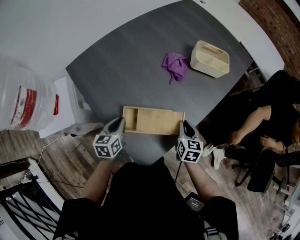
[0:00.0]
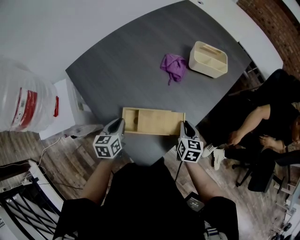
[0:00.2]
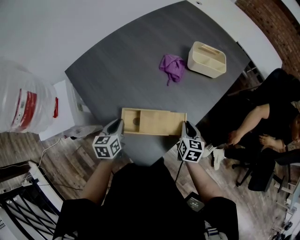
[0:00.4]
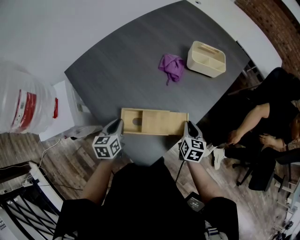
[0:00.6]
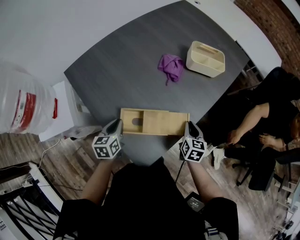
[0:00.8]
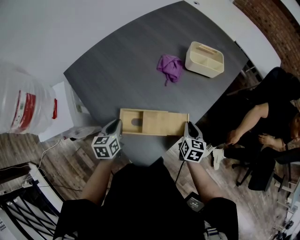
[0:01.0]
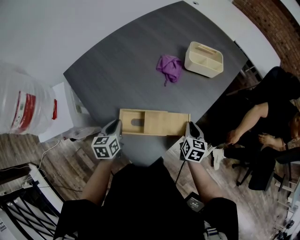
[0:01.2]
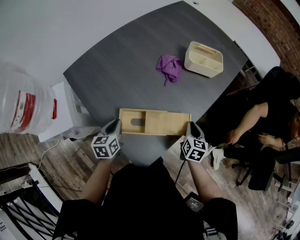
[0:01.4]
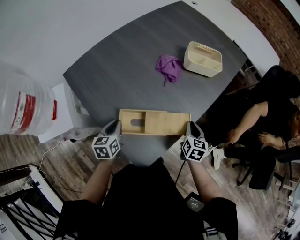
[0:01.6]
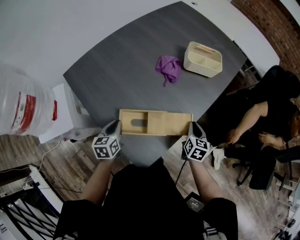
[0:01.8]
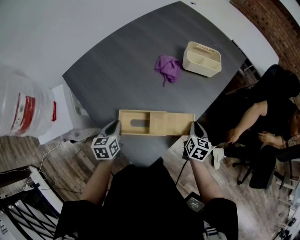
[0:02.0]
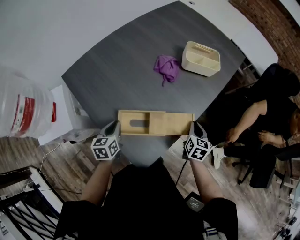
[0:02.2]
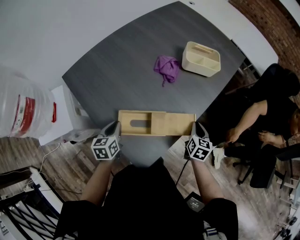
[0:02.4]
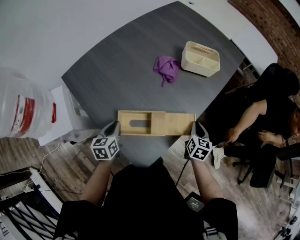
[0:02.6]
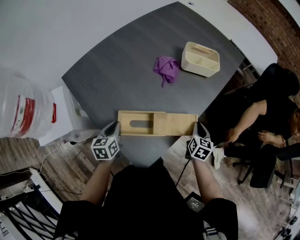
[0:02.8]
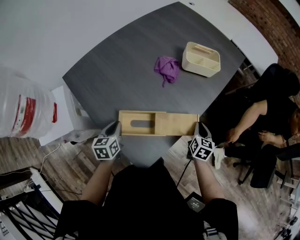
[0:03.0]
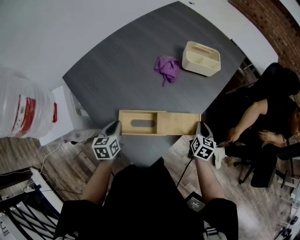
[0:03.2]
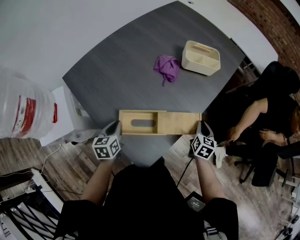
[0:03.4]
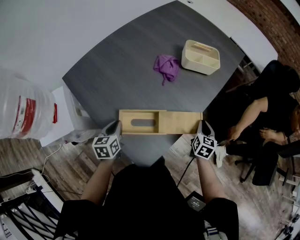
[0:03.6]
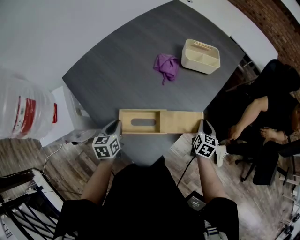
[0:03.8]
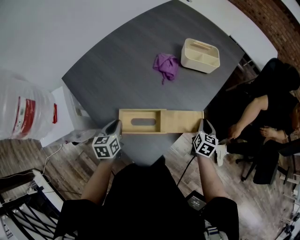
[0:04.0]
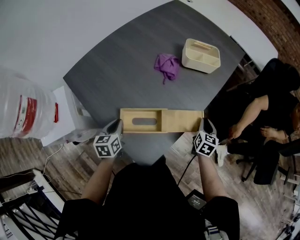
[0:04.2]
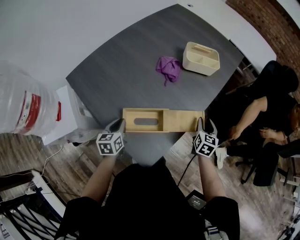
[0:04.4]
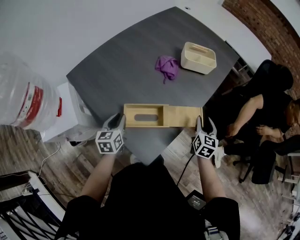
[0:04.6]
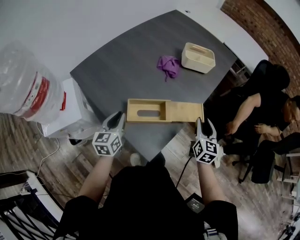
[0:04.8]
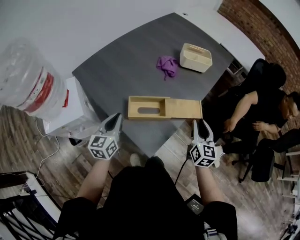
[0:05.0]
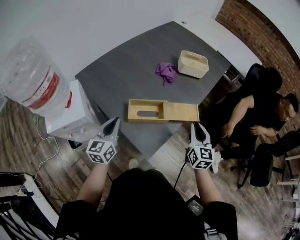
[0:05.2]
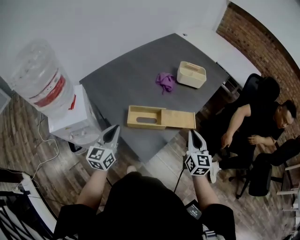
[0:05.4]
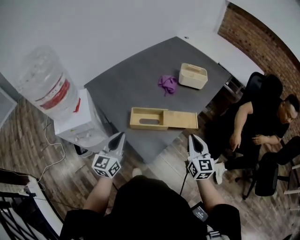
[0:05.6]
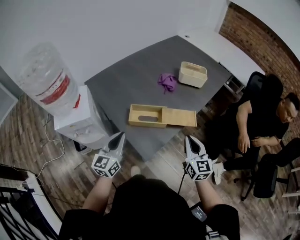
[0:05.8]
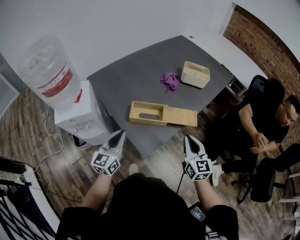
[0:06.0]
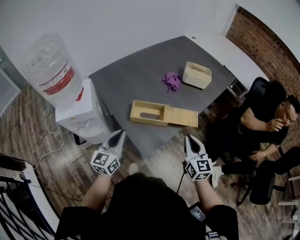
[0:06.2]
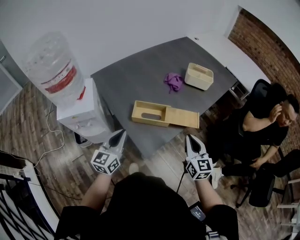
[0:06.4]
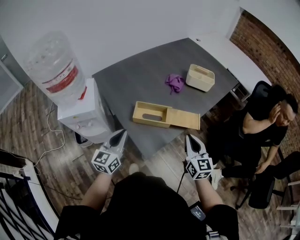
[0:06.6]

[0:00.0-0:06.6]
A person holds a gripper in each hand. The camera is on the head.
0:00.0 to 0:01.6: The right gripper heads to the right, covering about 5 cm.
0:01.6 to 0:03.2: The right gripper heads to the right, covering about 5 cm.
0:03.2 to 0:05.0: The left gripper heads upward and backward, covering some 10 cm, and swivels approximately 30 degrees. The right gripper is displaced upward, backward and to the left by roughly 20 cm, and turns by about 20 degrees.
0:05.0 to 0:06.6: The right gripper travels backward by about 5 cm, turns by about 20 degrees, and closes up; the left gripper moves backward, approximately 10 cm.

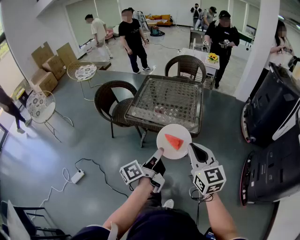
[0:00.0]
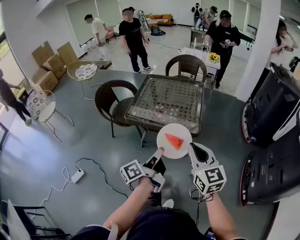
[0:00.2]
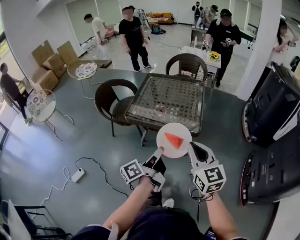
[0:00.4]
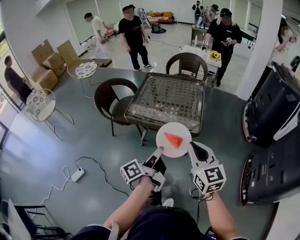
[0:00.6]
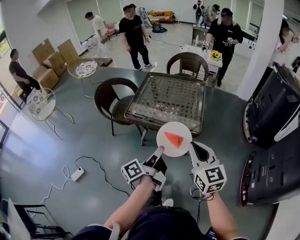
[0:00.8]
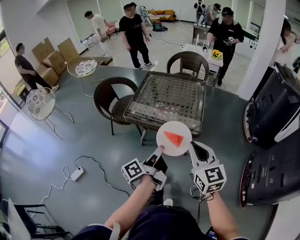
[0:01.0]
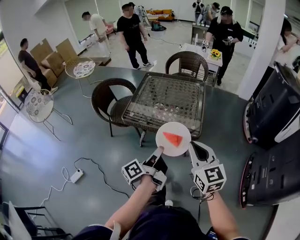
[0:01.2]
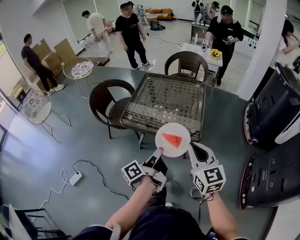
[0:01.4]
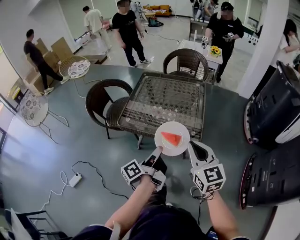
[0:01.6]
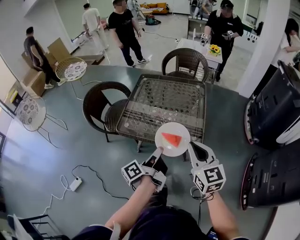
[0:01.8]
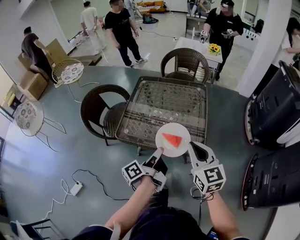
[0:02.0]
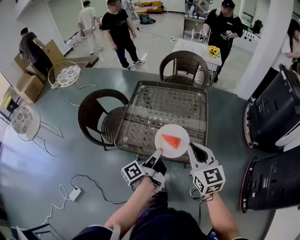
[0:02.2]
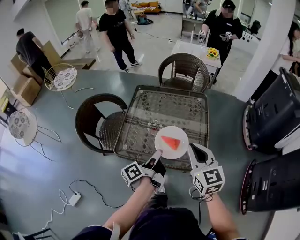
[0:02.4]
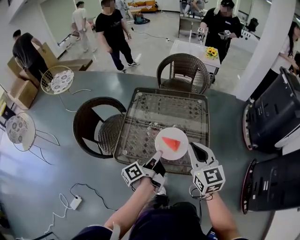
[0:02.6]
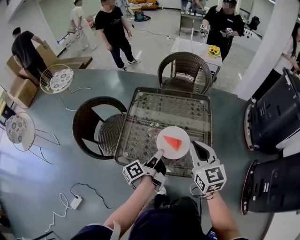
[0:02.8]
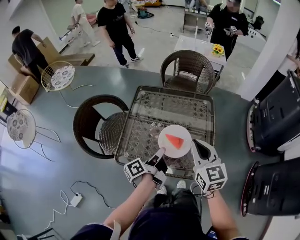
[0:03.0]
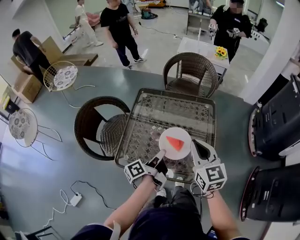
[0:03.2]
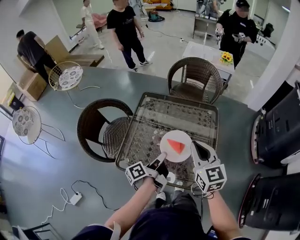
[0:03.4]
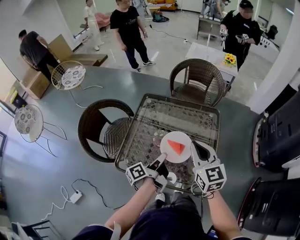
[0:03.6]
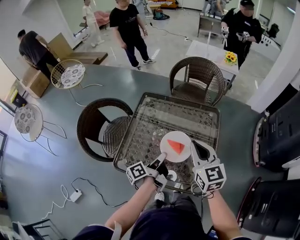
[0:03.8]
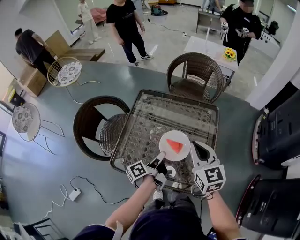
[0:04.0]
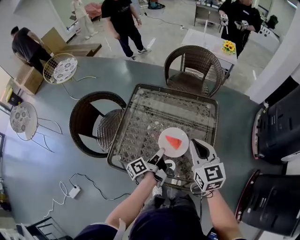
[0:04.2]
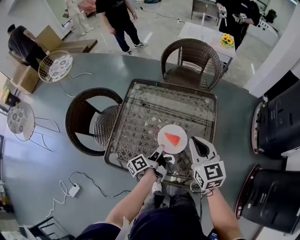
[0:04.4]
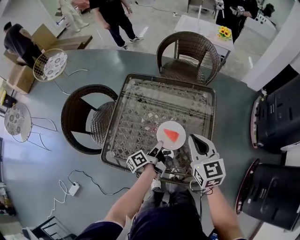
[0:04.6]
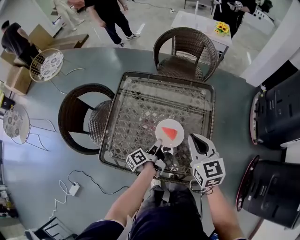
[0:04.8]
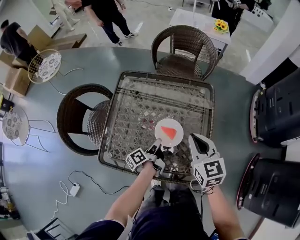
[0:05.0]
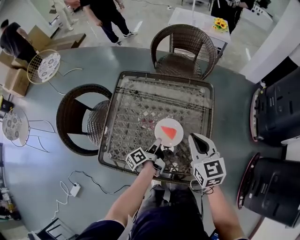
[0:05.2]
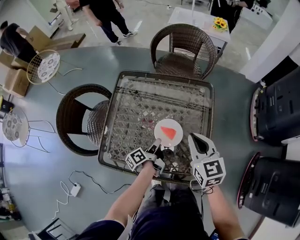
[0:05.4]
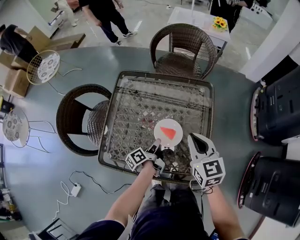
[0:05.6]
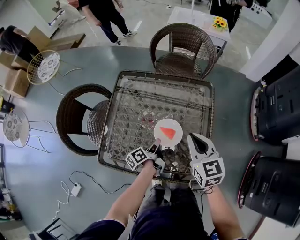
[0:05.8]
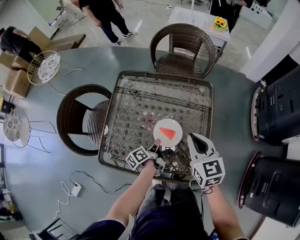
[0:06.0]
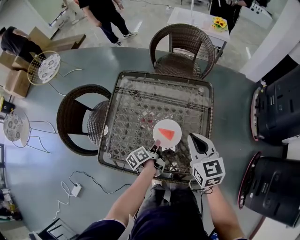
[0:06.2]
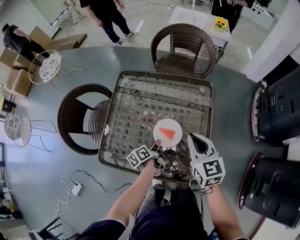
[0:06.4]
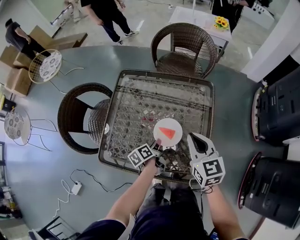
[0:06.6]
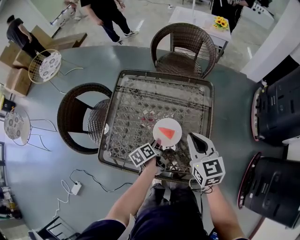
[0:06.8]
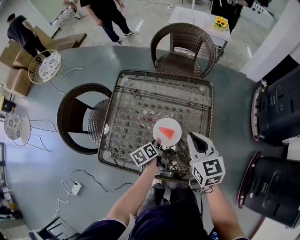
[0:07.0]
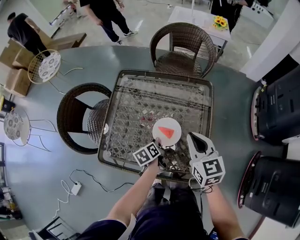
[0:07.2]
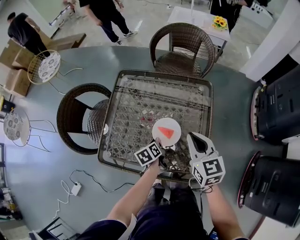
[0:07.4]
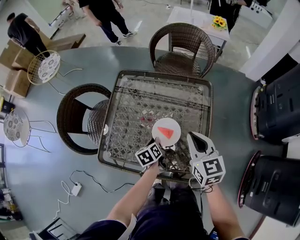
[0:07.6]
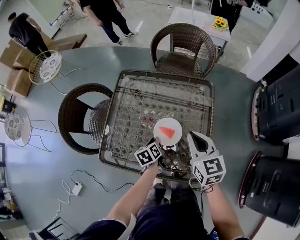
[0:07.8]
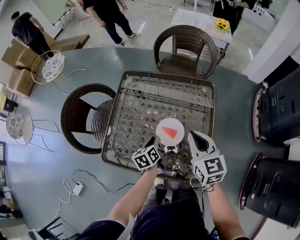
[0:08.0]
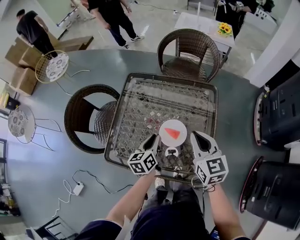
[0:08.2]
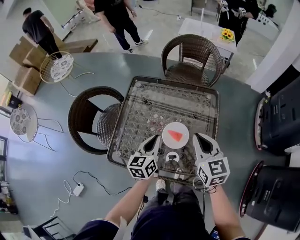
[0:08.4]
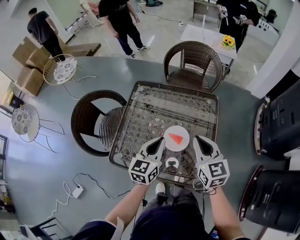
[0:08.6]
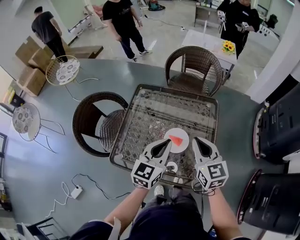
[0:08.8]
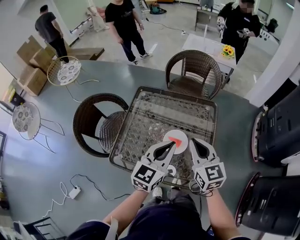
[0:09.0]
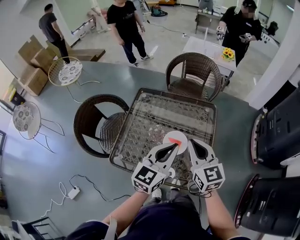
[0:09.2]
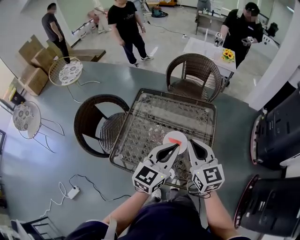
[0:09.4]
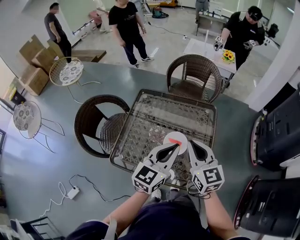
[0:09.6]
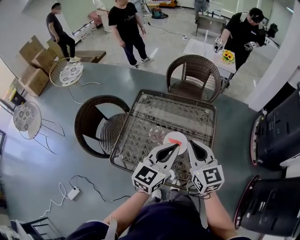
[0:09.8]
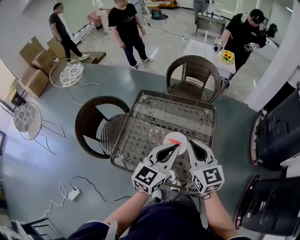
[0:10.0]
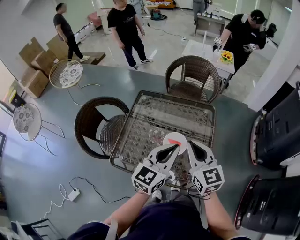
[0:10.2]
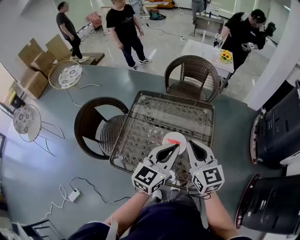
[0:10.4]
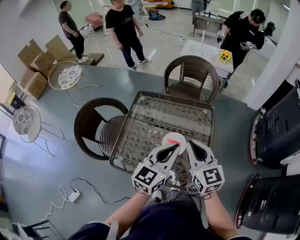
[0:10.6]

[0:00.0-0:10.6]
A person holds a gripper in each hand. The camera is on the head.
0:00.0 to 0:01.6: The left gripper heads forward and downward, covering roughly 15 cm. Meanwhile the right gripper goes roughly 15 cm forward.
0:01.6 to 0:03.0: The two grippers go about 25 cm forward.
0:03.0 to 0:04.6: The right gripper heads forward and downward, covering approximately 10 cm. The left gripper goes approximately 15 cm downward and forward.
0:04.6 to 0:06.0: There are only small adjustments of the grippers.
0:06.0 to 0:07.6: The left gripper swivels some 40 degrees.
0:07.6 to 0:09.0: The right gripper travels upward by some 10 cm, while the left gripper heads upward, covering some 30 cm, and tilts its fingers approximately 40 degrees upward.
0:09.0 to 0:10.6: The grippers stay close to where they were, moving slightly.

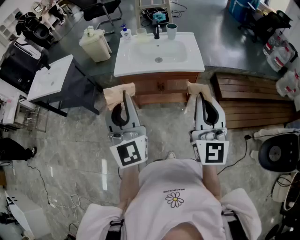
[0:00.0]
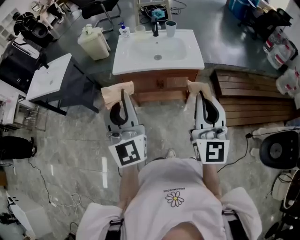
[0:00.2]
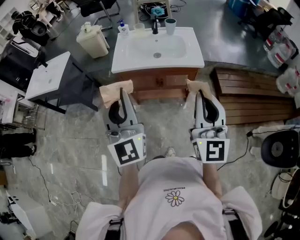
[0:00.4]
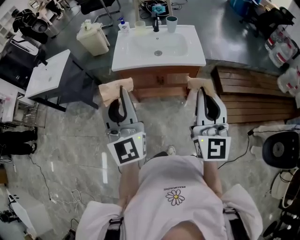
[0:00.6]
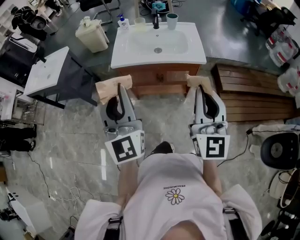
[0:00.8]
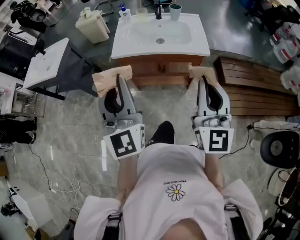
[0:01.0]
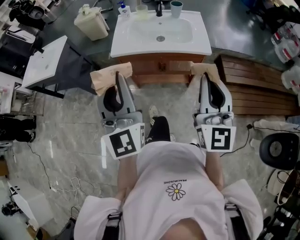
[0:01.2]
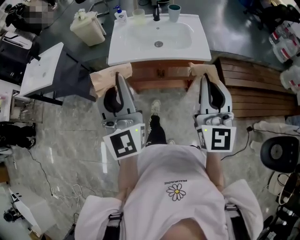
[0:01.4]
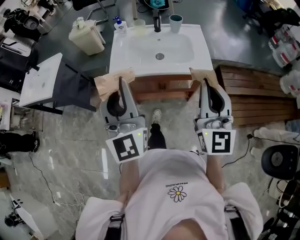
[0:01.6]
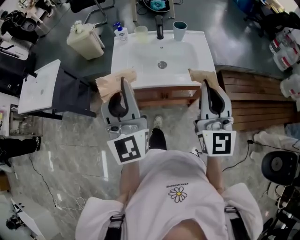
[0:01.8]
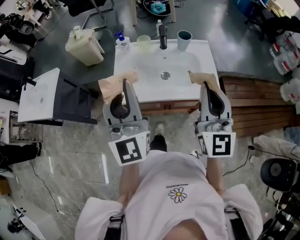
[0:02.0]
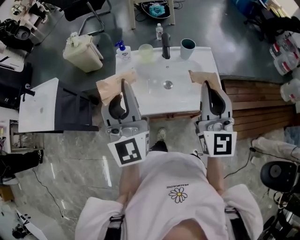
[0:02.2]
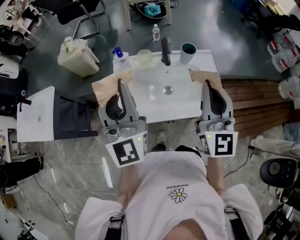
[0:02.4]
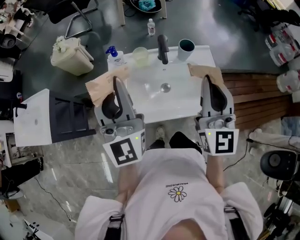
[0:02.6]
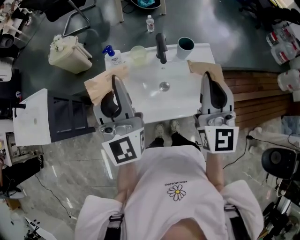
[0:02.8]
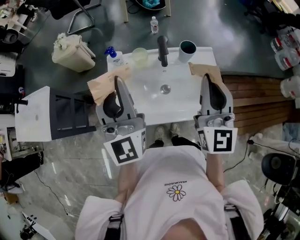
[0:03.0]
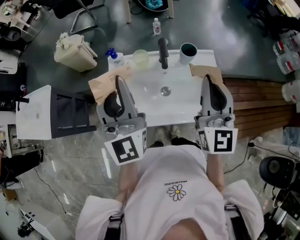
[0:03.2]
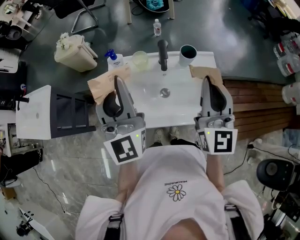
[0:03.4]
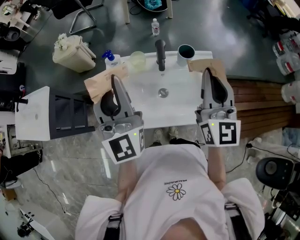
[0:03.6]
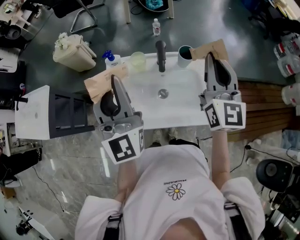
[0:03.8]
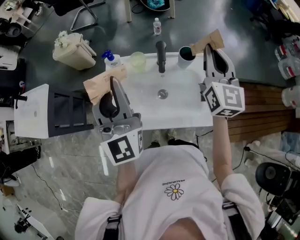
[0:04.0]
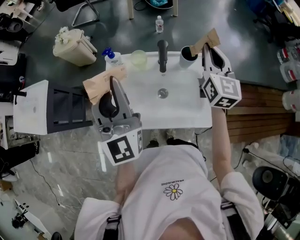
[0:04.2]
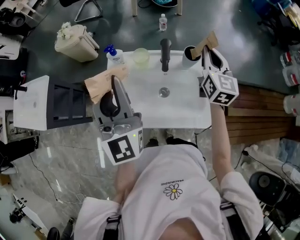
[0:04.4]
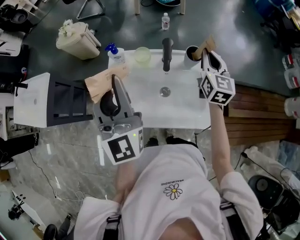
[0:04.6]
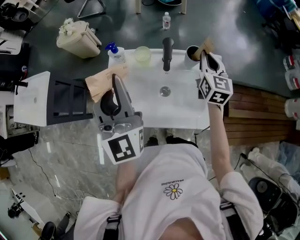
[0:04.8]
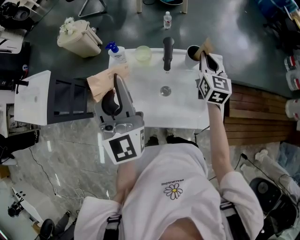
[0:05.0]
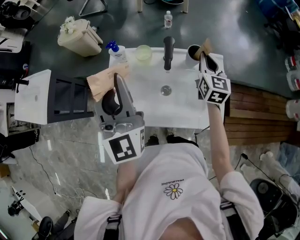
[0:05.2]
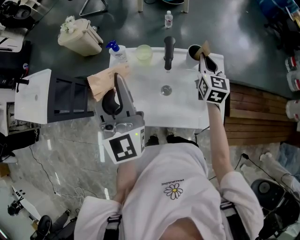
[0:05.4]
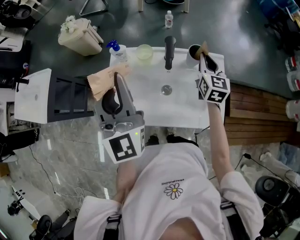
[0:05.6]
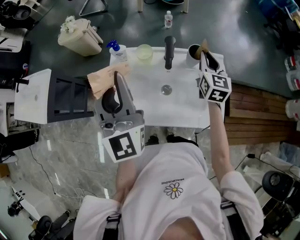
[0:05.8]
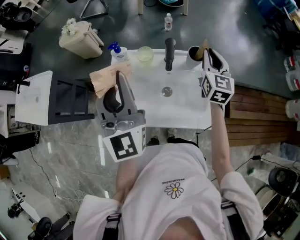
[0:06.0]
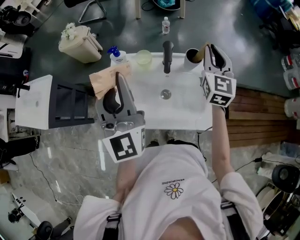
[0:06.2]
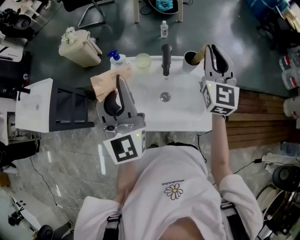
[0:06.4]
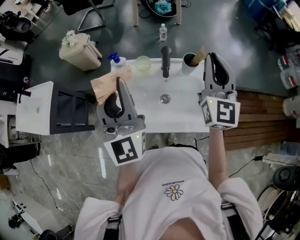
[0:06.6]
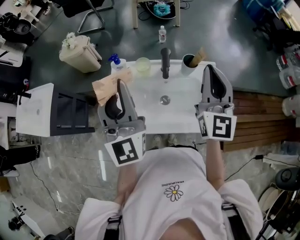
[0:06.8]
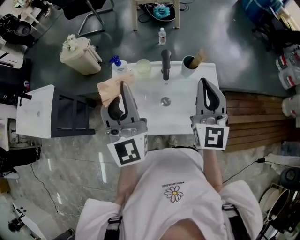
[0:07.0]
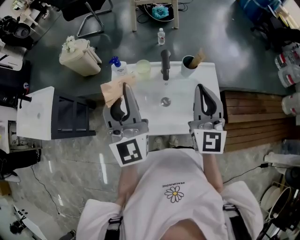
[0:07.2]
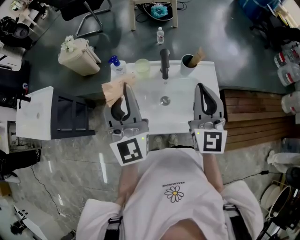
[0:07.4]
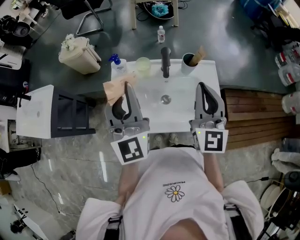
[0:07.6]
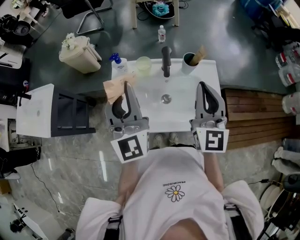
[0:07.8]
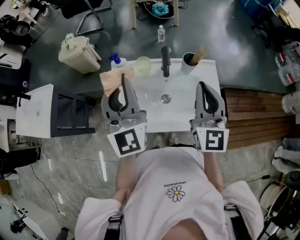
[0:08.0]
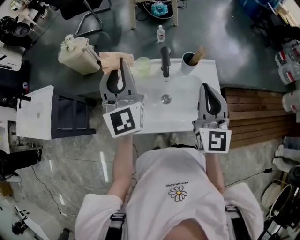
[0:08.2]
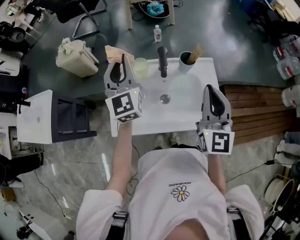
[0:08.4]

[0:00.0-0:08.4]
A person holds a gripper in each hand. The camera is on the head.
0:00.0 to 0:01.4: The two grippers go some 10 cm forward.
0:01.4 to 0:02.8: Both grippers move forward, roughly 40 cm.
0:02.8 to 0:04.2: The right gripper shifts some 20 cm forward and to the right.
0:04.2 to 0:05.6: The right gripper shifts roughly 10 cm downward.
0:05.6 to 0:07.0: The right gripper is displaced backward and upward by approximately 20 cm, and turns by about 30 degrees.
0:07.0 to 0:08.4: The left gripper goes about 15 cm forward and downward.
